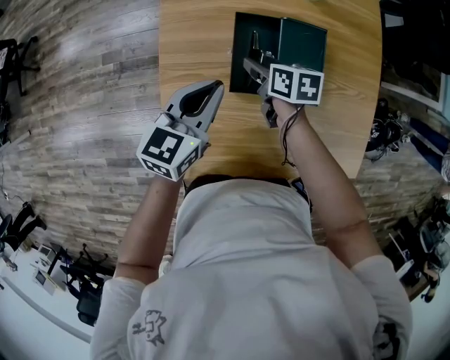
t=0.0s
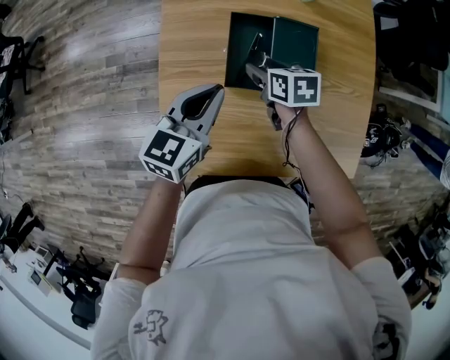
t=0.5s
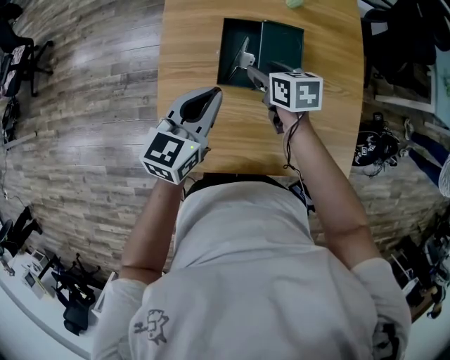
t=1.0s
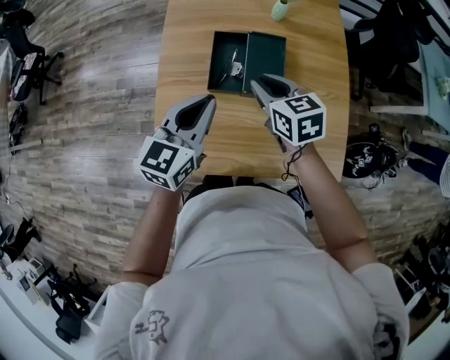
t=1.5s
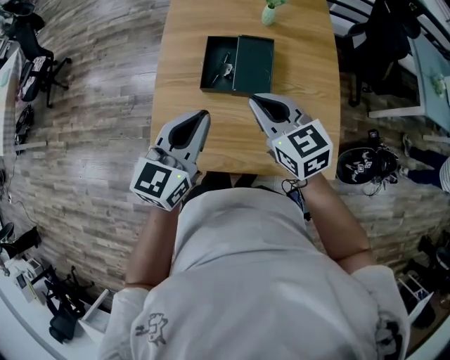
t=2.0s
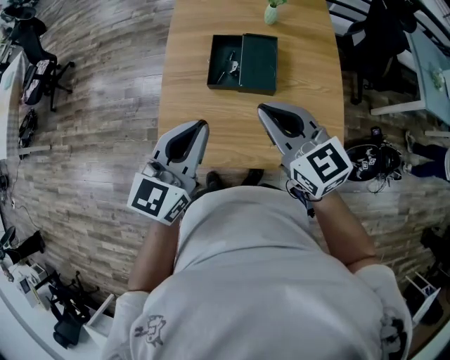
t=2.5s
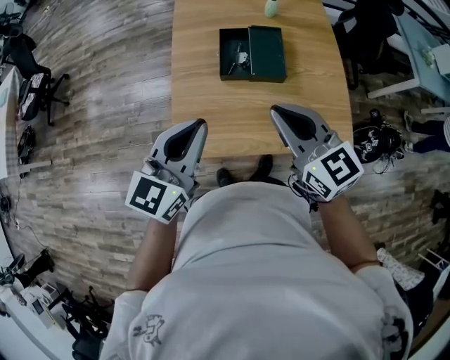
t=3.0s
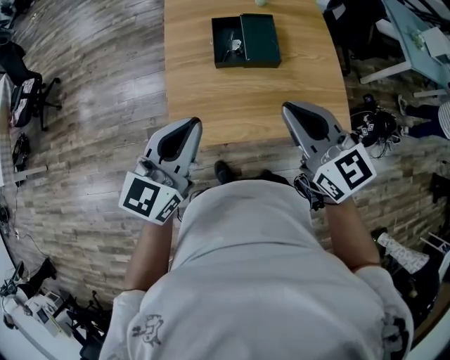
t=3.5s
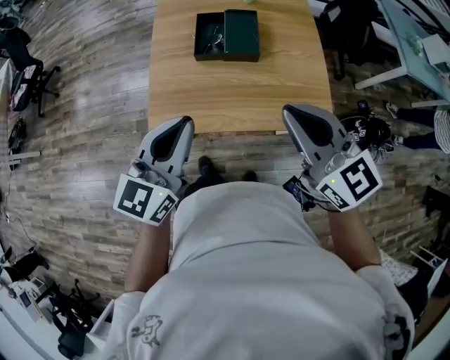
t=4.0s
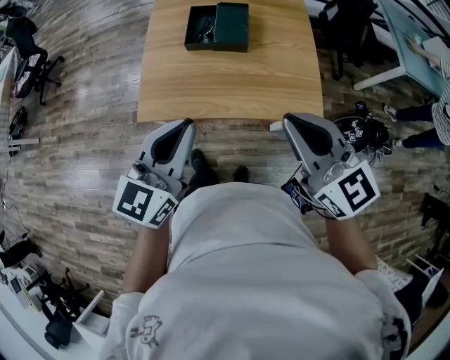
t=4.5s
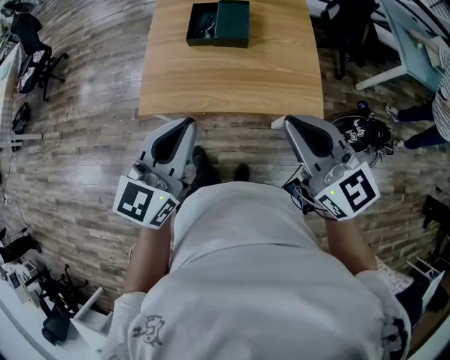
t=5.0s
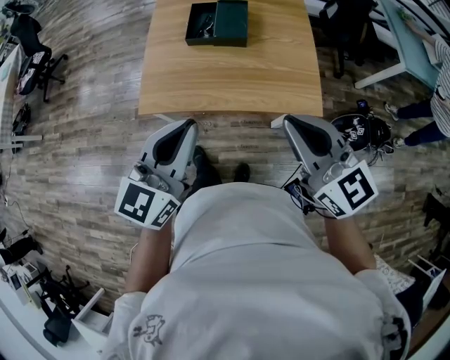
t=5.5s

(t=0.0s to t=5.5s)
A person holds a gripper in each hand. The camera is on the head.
t=0.0s - t=2.0s: The right gripper shifts roughly 30 cm upward and backward, rotates around the line of its fingers by approximately 40 degrees, counterclockwise from behind, and closes. The left gripper goes about 25 cm backward, upward and to the right.
t=2.0s - t=3.5s: The right gripper goes roughly 15 cm backward and upward. The left gripper travels to the left and backward by approximately 15 cm.
t=3.5s - t=5.5s: The grippers both shift backward and to the right by about 20 cm.

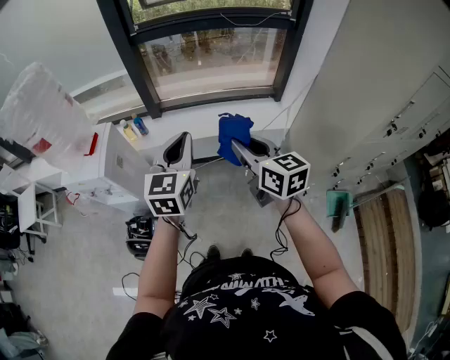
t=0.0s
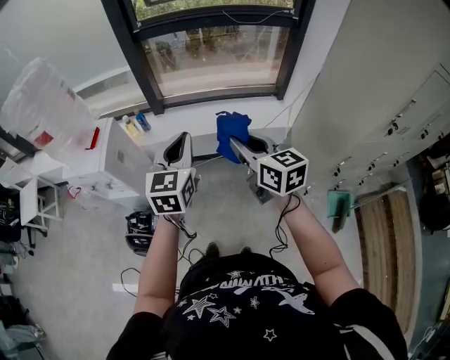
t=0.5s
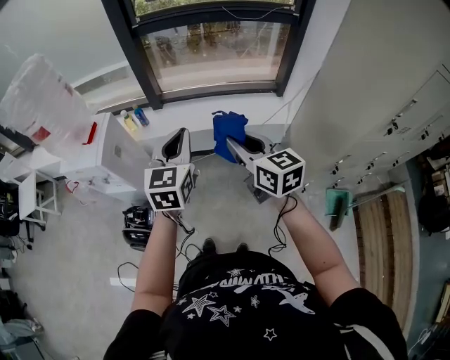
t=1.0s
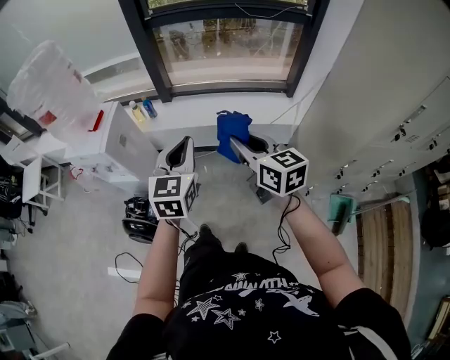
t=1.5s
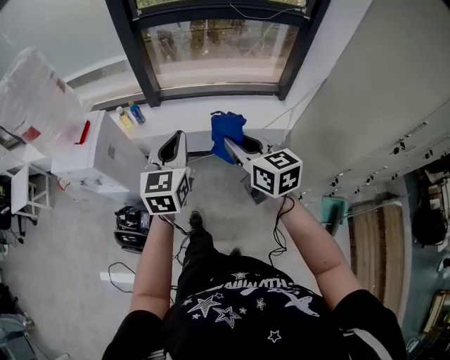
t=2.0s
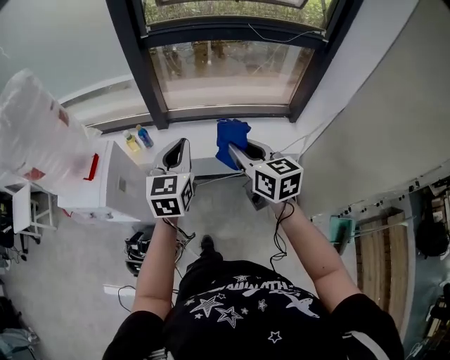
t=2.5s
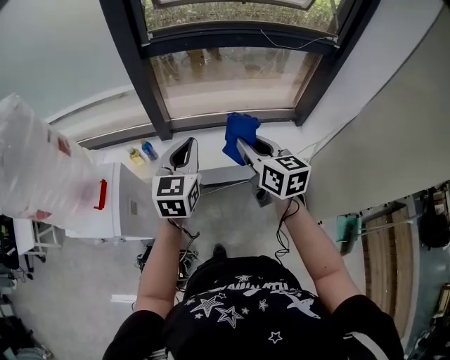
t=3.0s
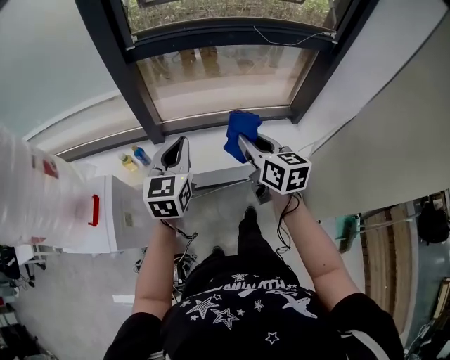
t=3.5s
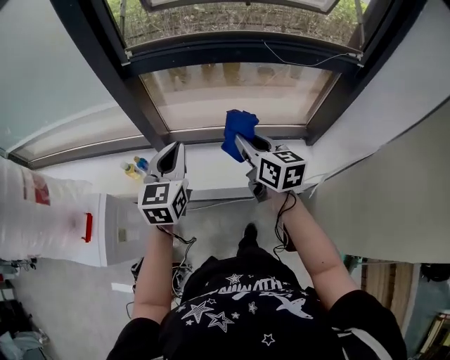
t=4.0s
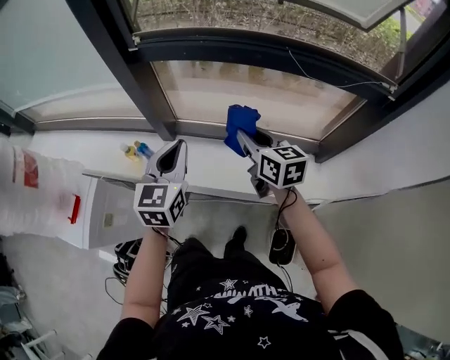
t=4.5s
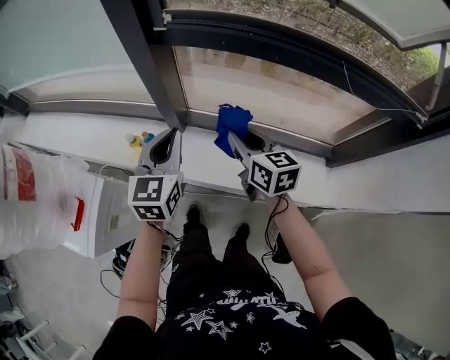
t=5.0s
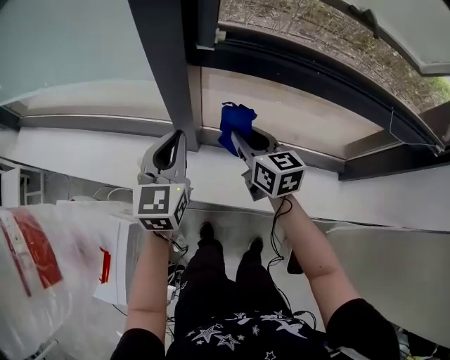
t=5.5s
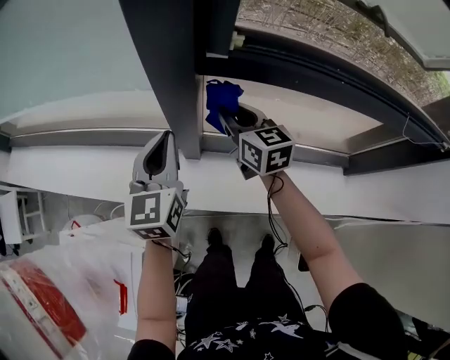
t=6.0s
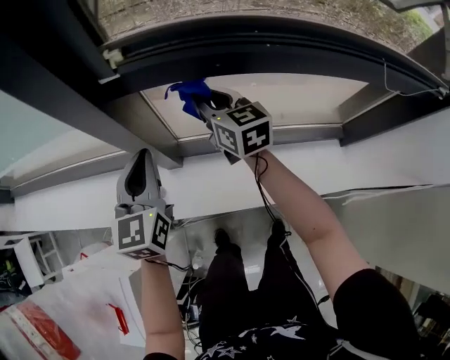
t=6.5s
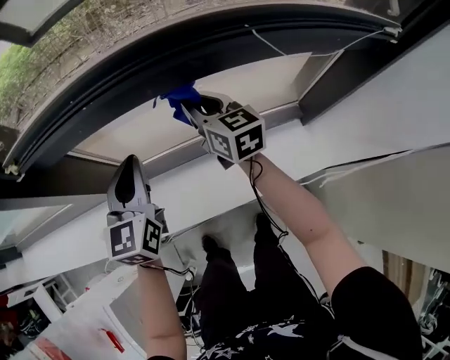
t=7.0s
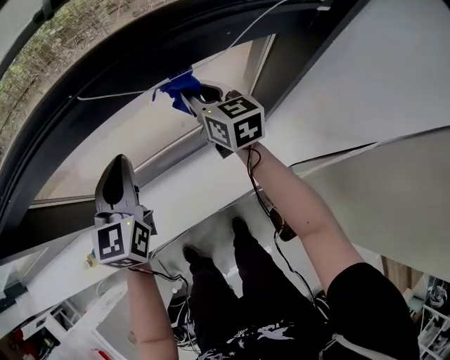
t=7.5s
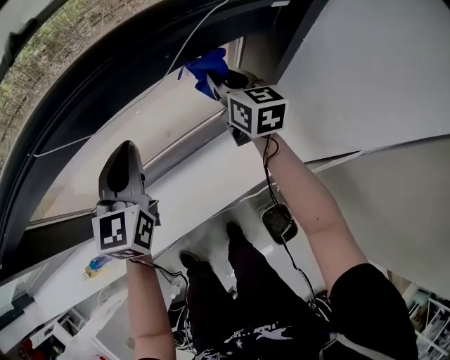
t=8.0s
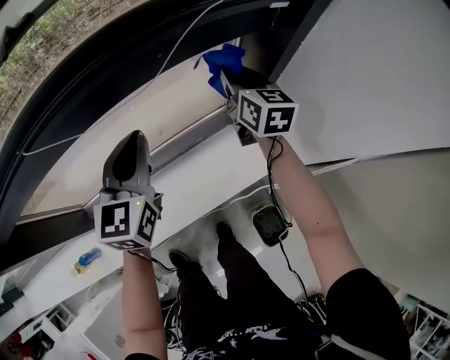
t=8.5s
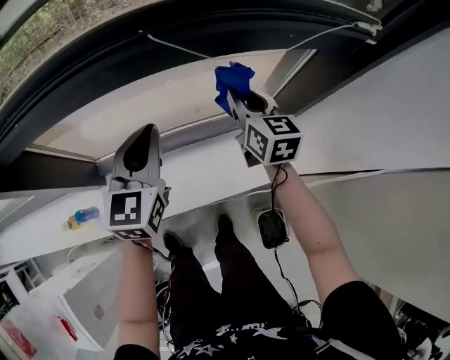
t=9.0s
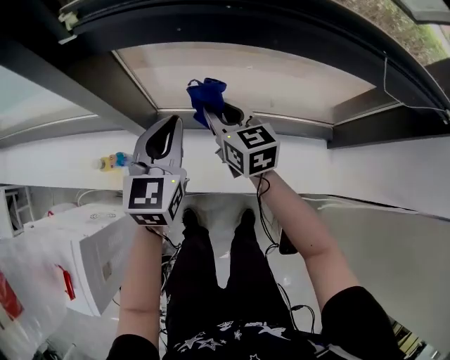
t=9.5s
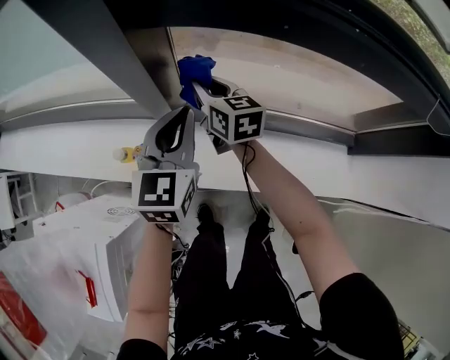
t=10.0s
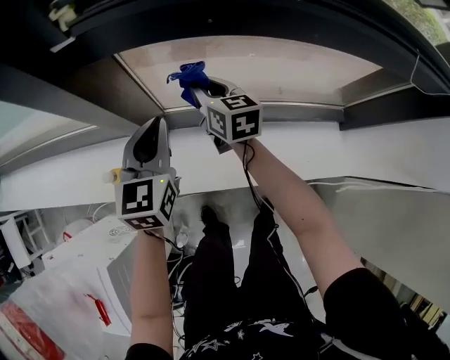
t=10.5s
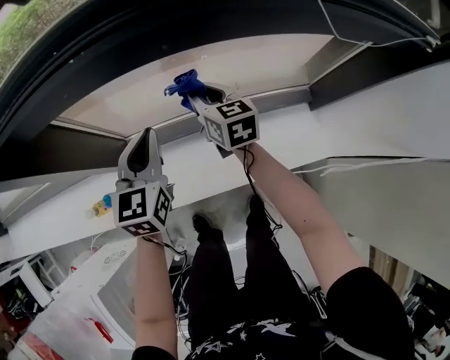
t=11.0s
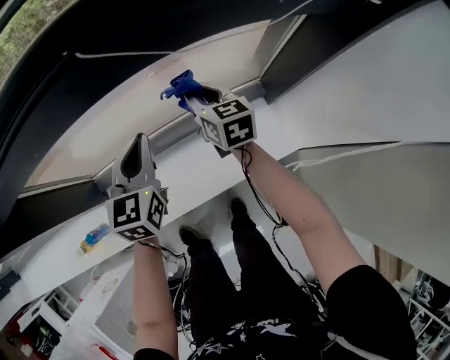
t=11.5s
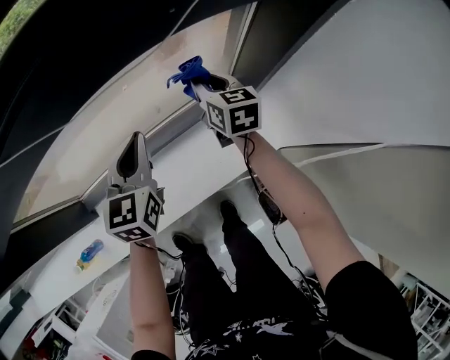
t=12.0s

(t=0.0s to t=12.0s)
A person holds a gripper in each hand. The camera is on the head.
t=0.0s - t=2.0s: The grippers make only small movements.
t=2.0s - t=4.0s: Both grippers move forward, some 40 cm.
t=4.0s - t=6.0s: The grippers both shift forward and to the left by some 35 cm.
t=6.0s - t=8.0s: The two grippers travel together, approximately 60 cm. The left gripper swivels approximately 30 degrees. Meanwhile the right gripper changes its angle by roughly 40 degrees.
t=8.0s - t=10.0s: The pair of grippers is taken some 60 cm. The right gripper rotates approximately 40 degrees. The left gripper swivels some 20 degrees.
t=10.0s - t=12.0s: Both grippers are carried some 50 cm. The left gripper swivels roughly 30 degrees; the right gripper turns by some 40 degrees.

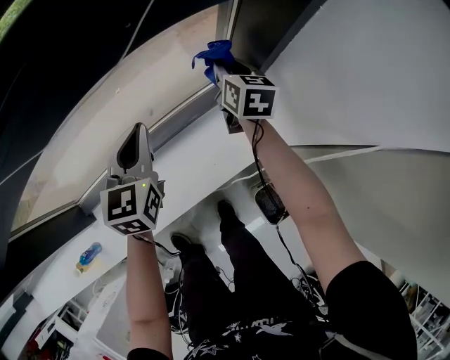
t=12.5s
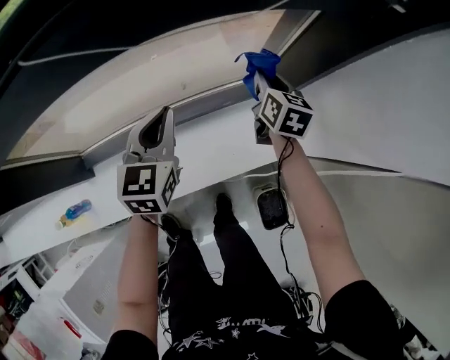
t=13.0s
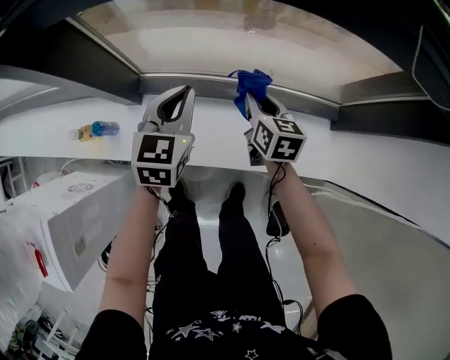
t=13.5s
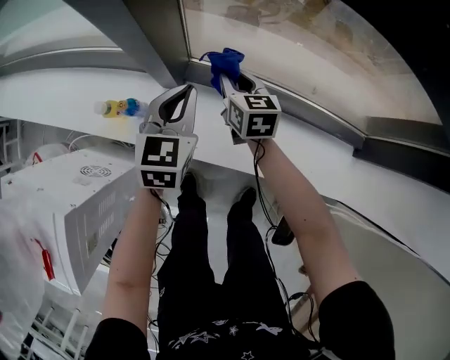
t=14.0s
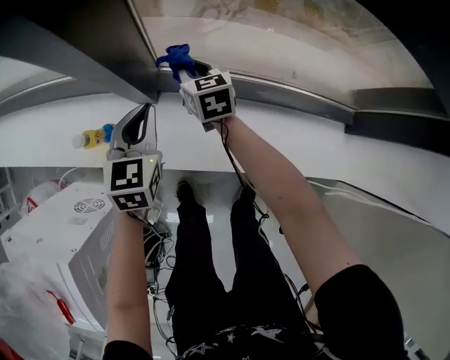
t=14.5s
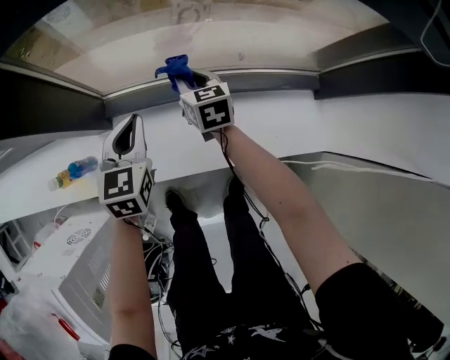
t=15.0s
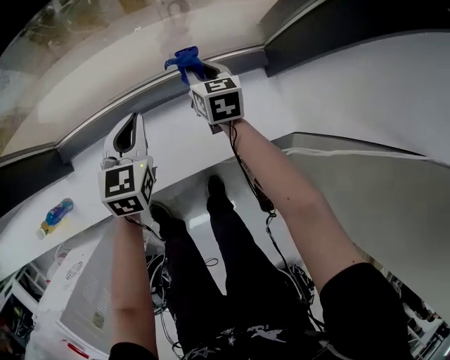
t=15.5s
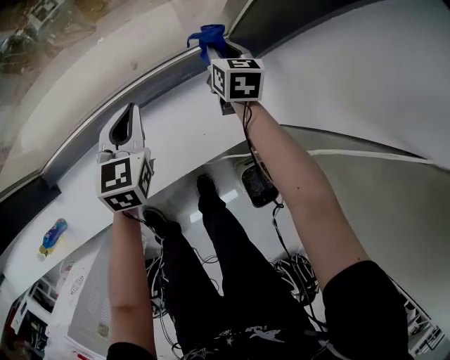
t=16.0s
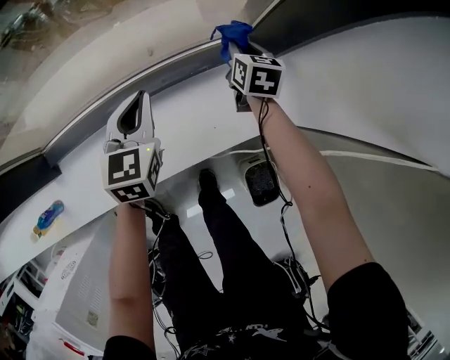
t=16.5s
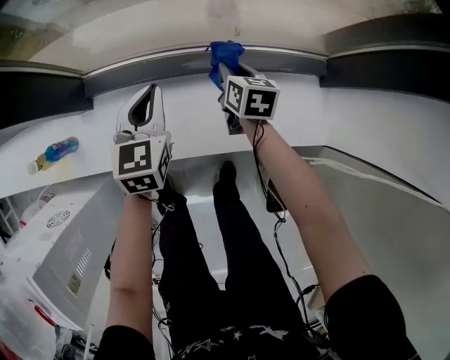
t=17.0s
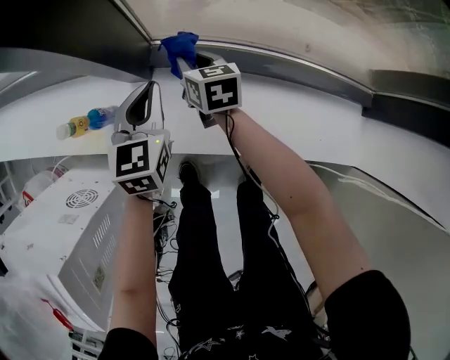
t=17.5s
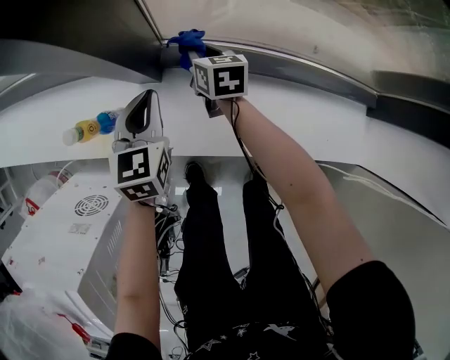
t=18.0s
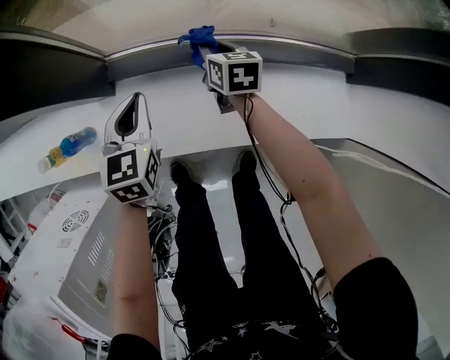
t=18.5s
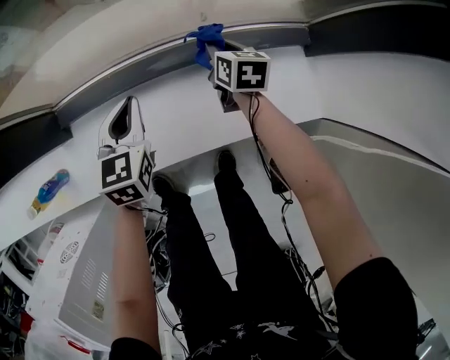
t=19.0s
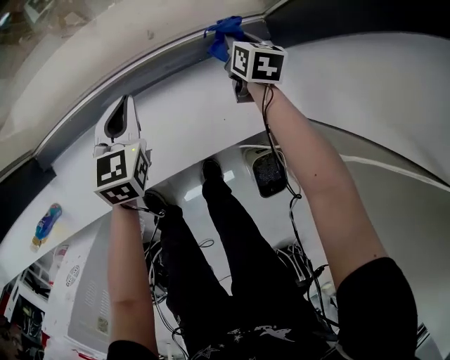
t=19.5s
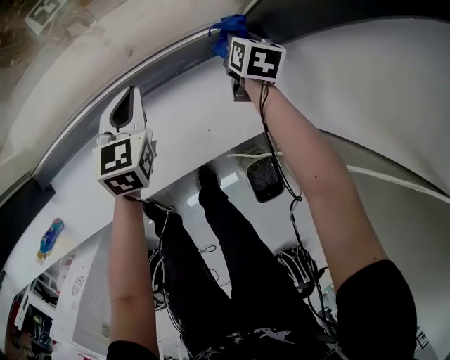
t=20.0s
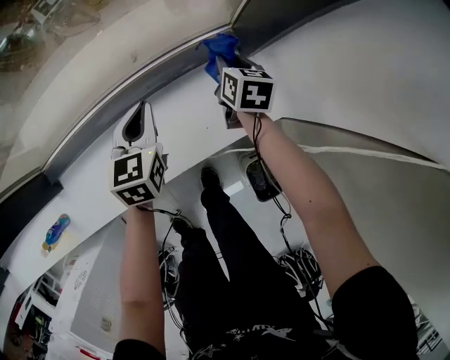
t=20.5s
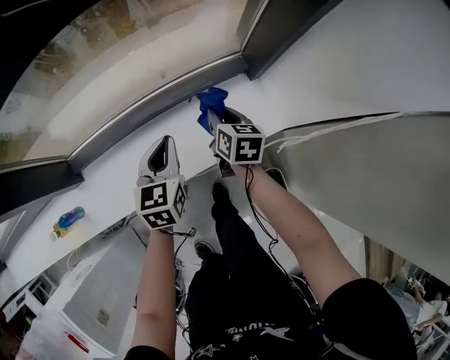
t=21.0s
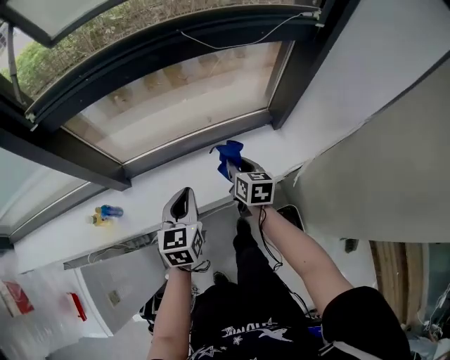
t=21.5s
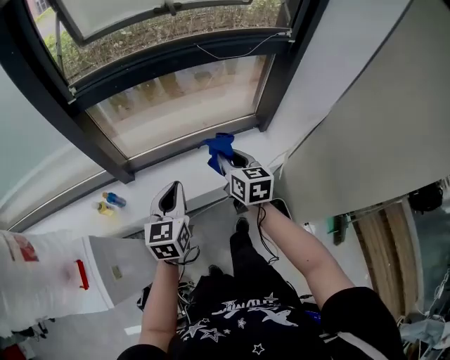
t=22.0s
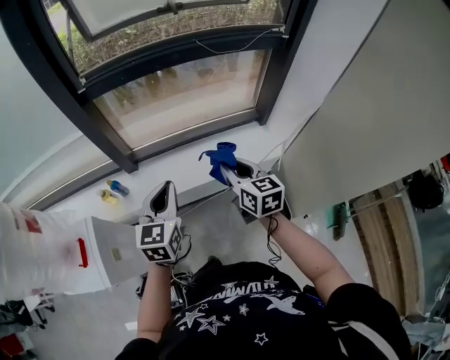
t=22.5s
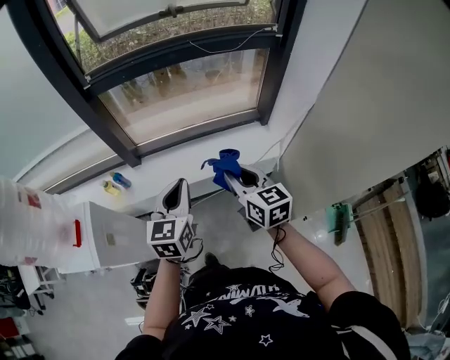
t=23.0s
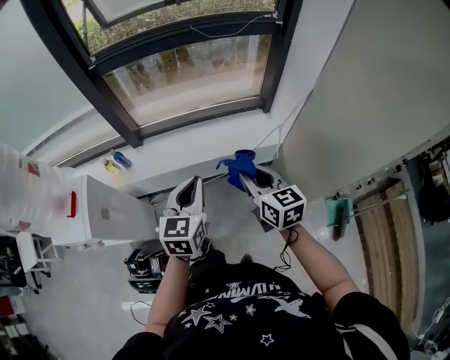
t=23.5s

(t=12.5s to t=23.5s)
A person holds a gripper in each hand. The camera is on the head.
t=12.5s - t=14.5s: Both grippers are carried roughly 60 cm. The right gripper turns by some 50 degrees. Meanwhile the left gripper rotates some 30 degrees.
t=14.5s - t=16.0s: The two grippers travel together, about 60 cm. The left gripper changes its angle by roughly 30 degrees, while the right gripper swivels approximately 50 degrees.
t=16.0s - t=18.0s: The two grippers travel together, roughly 60 cm. The left gripper swivels some 30 degrees. The right gripper swivels roughly 40 degrees.
t=18.0s - t=20.0s: The pair of grippers is taken about 60 cm. The right gripper changes its angle by some 50 degrees. Meanwhile the left gripper swivels about 30 degrees.
t=20.0s - t=21.5s: The right gripper is displaced backward, upward and to the left by approximately 50 cm, and swivels approximately 20 degrees. The left gripper goes approximately 40 cm backward and upward.
t=21.5s - t=23.5s: The grippers both shift backward and upward by some 35 cm. The right gripper turns by roughly 20 degrees.
